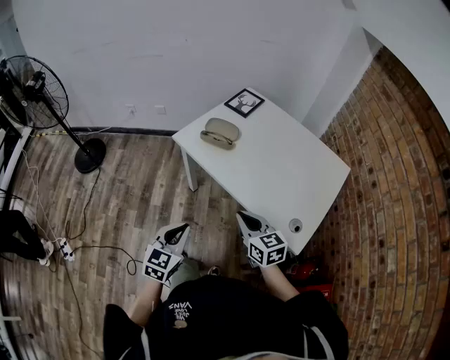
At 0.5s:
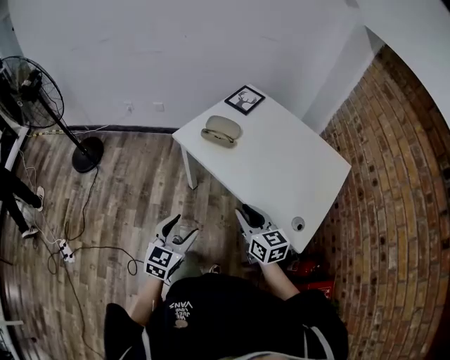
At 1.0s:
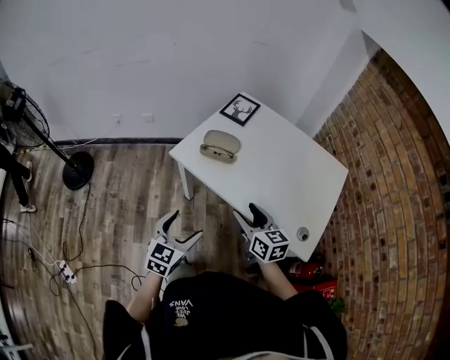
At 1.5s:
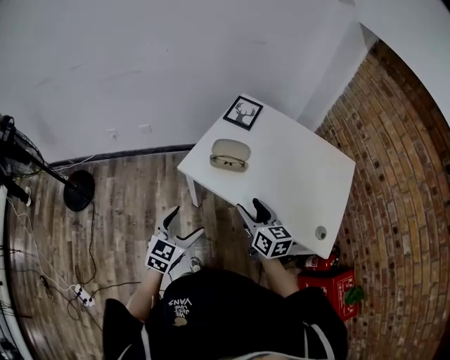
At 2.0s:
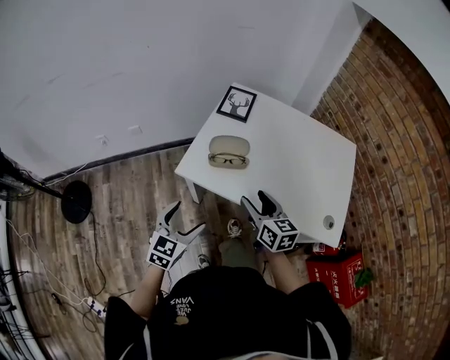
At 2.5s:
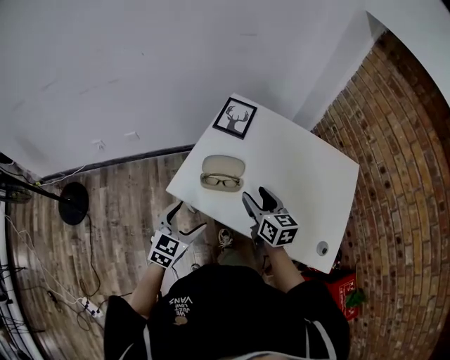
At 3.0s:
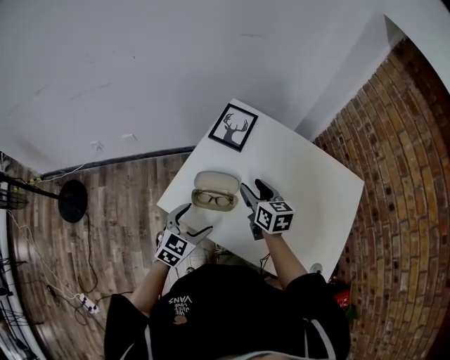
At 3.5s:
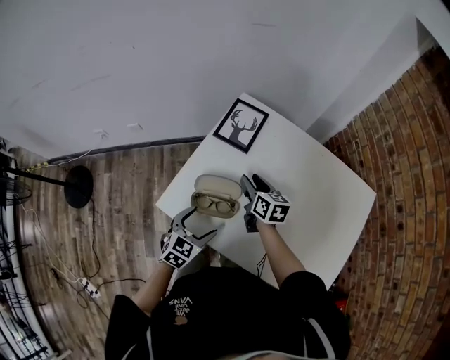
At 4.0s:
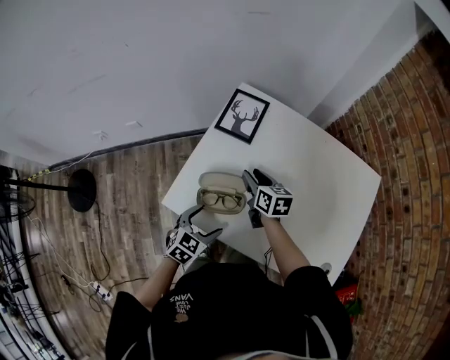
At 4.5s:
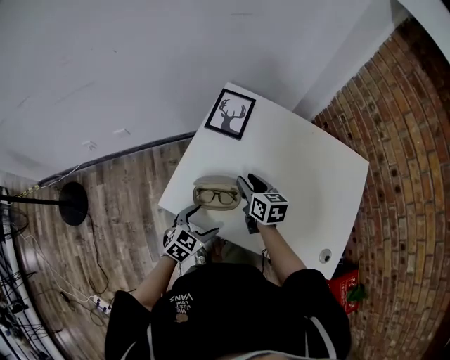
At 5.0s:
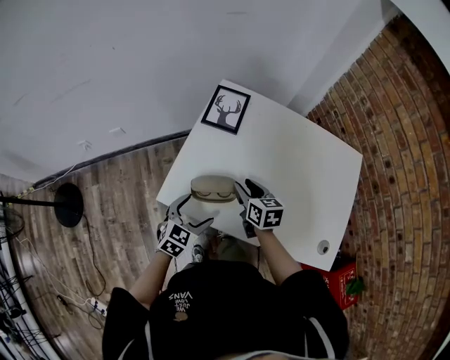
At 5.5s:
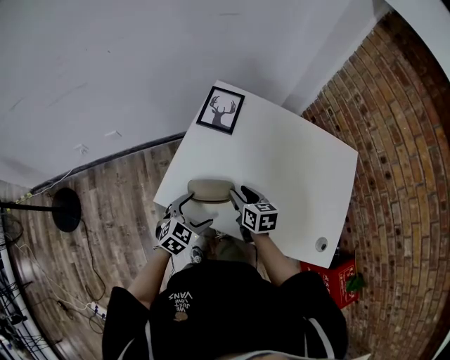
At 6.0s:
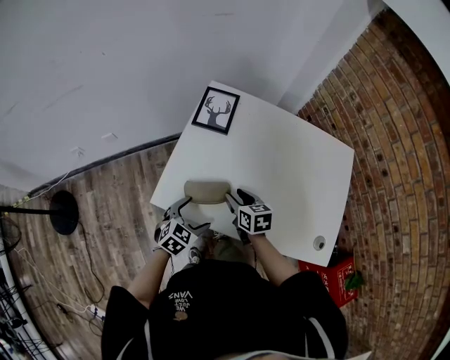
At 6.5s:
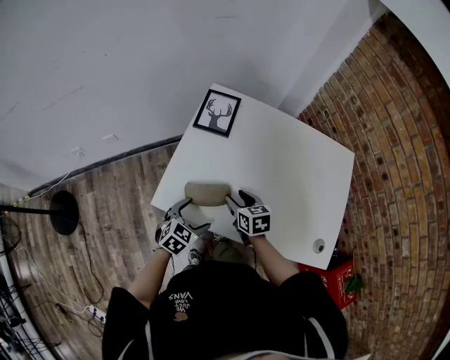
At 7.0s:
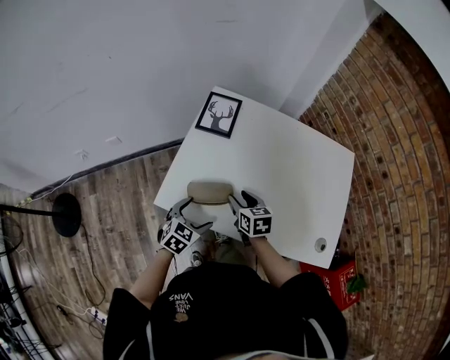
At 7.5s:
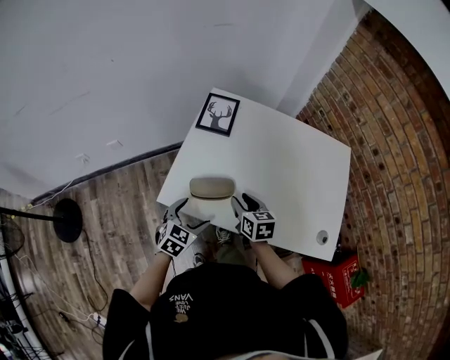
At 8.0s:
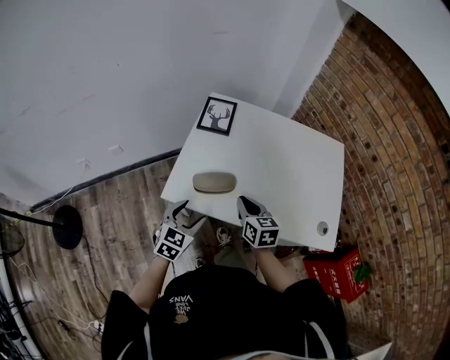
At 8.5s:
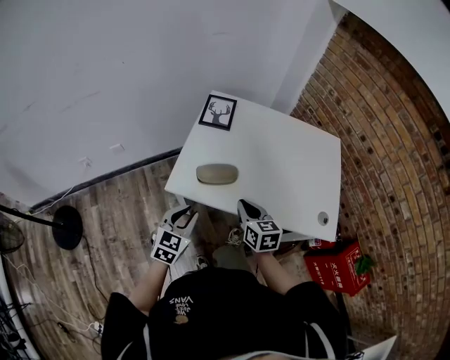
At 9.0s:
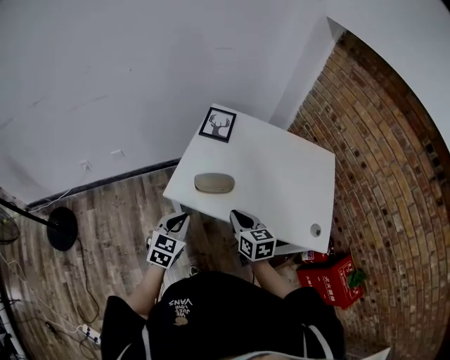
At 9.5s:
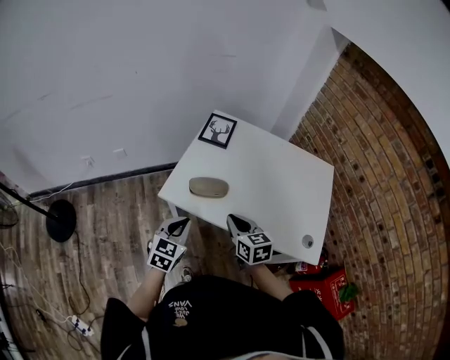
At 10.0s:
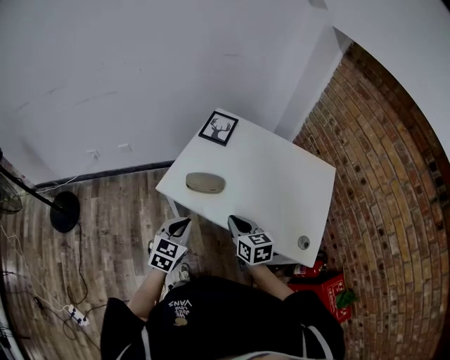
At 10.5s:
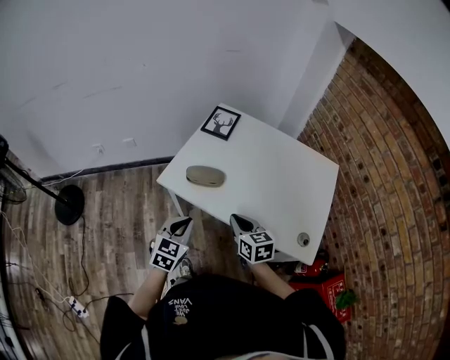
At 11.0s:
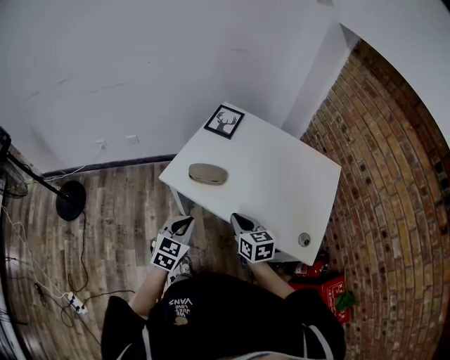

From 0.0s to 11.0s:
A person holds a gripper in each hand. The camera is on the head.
From 0.0s to 2.0s: Both grippers move forward and to the left, some 25 cm. The left gripper swivels approximately 20 degrees, and opens its fingers, while the right gripper swivels roughly 30 degrees, and opens its fingers.
From 2.0s to 3.5s: The right gripper moves forward, some 30 cm; the left gripper moves forward, to the right and downward, some 20 cm.
From 3.5s to 5.5s: The right gripper heads backward, covering roughly 15 cm.
From 5.5s to 7.5s: The grippers make only small movements.
From 7.5s to 9.0s: The two grippers go some 15 cm backward and upward. The right gripper closes its fingers. The left gripper closes its fingers.
From 9.0s to 11.0s: The left gripper travels to the right and backward by some 10 cm. Meanwhile the right gripper shifts about 5 cm to the right.

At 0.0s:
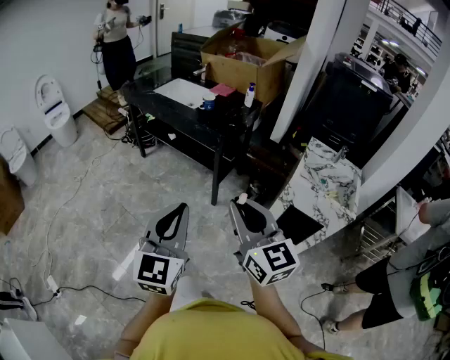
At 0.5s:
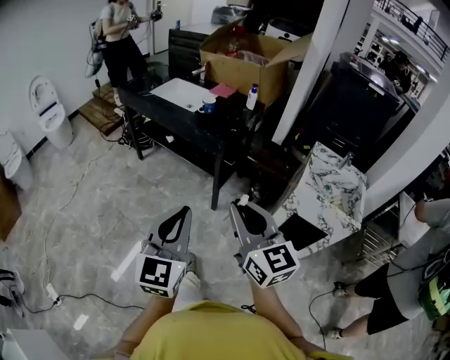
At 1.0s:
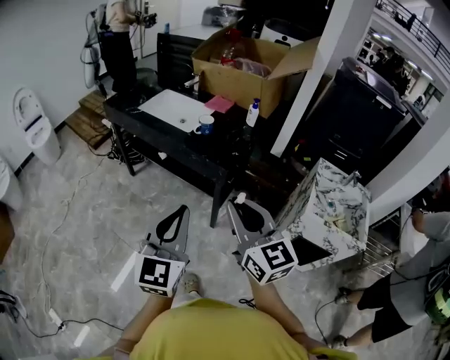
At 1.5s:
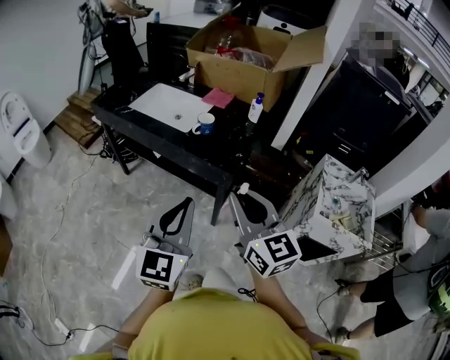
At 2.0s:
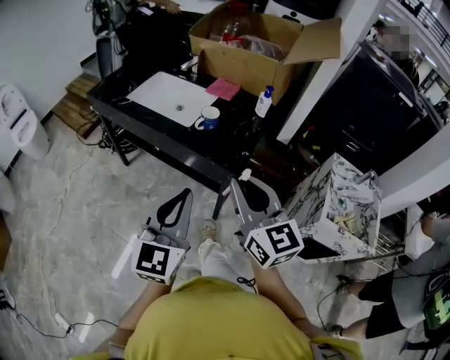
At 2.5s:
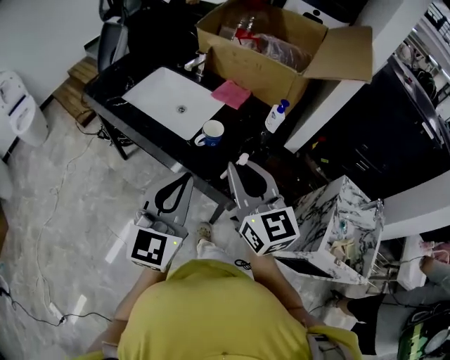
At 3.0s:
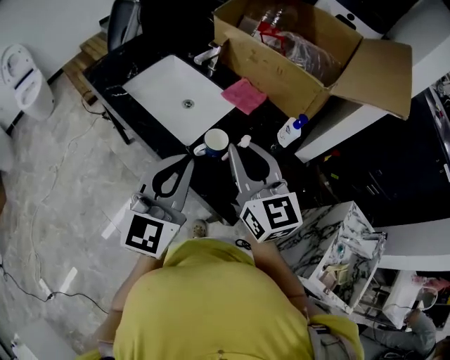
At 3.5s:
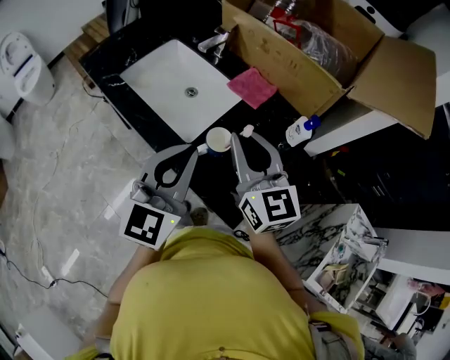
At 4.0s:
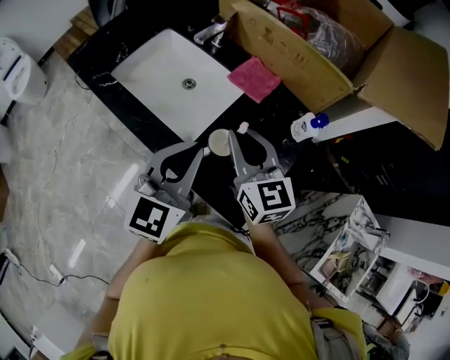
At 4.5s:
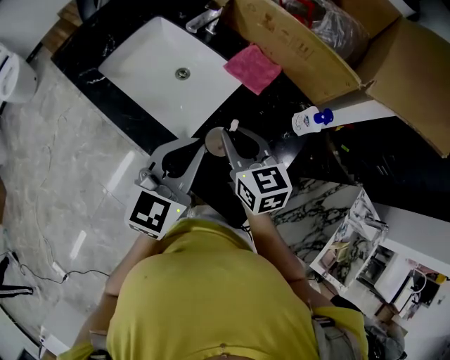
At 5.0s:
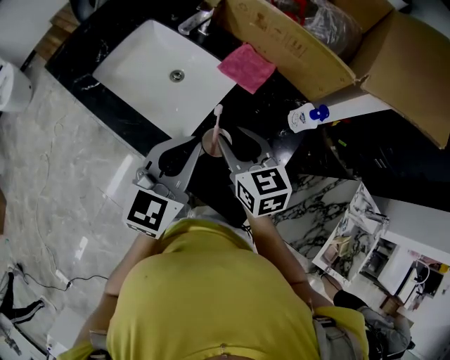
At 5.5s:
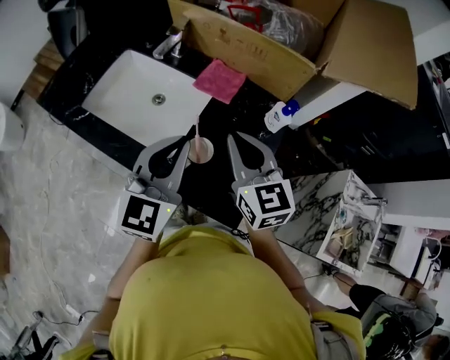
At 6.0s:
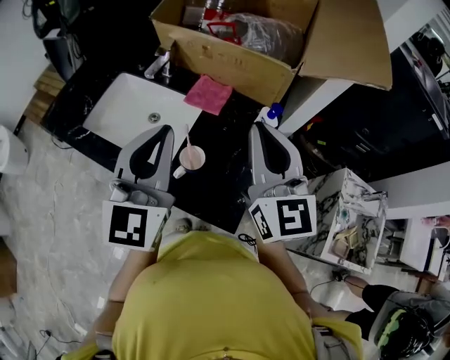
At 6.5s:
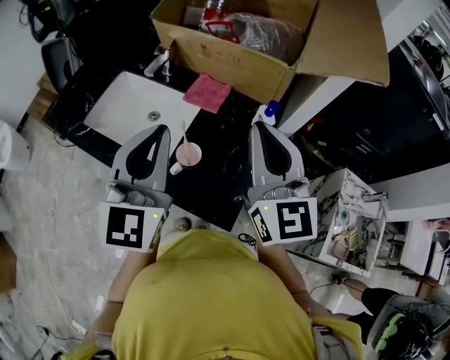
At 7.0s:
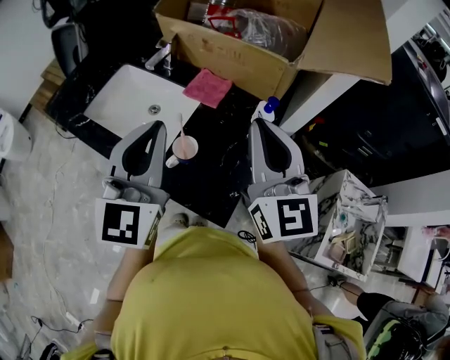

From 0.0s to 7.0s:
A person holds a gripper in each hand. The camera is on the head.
From 0.0s to 2.0s: Both grippers are carried forward, approximately 40 cm.
From 2.0s to 3.5s: The two grippers go approximately 35 cm forward.
From 3.5s to 5.0s: The right gripper shifts approximately 15 cm downward and forward, rotates about 30 degrees, and opens. Meanwhile the left gripper heads forward and downward, covering approximately 10 cm.
From 5.0s to 7.0s: The right gripper shifts roughly 25 cm upward and to the right, tips its fingers upward by approximately 30 degrees, and closes its fingers. Meanwhile the left gripper is displaced upward by roughly 15 cm.

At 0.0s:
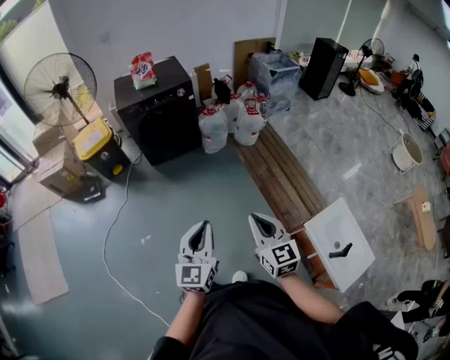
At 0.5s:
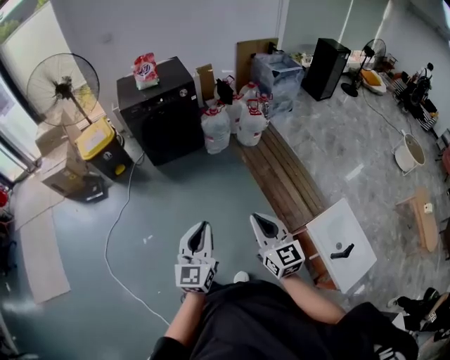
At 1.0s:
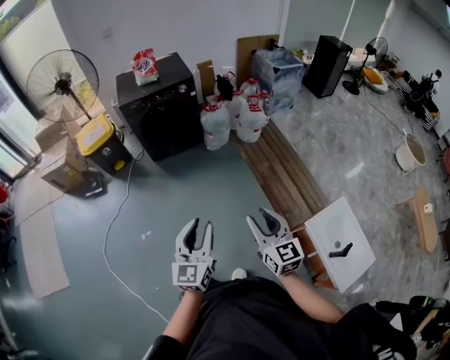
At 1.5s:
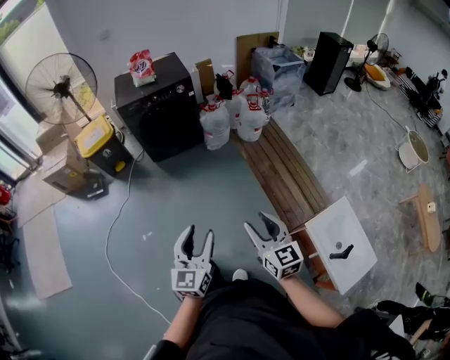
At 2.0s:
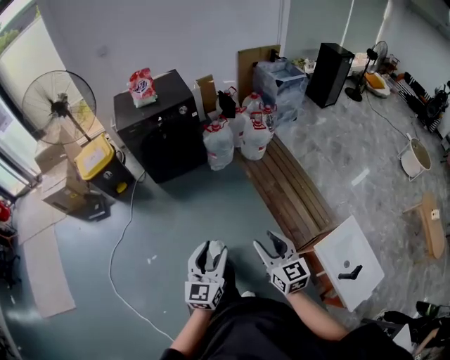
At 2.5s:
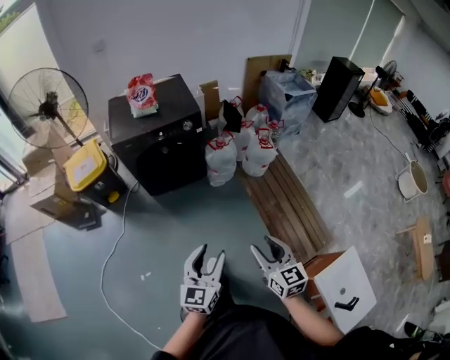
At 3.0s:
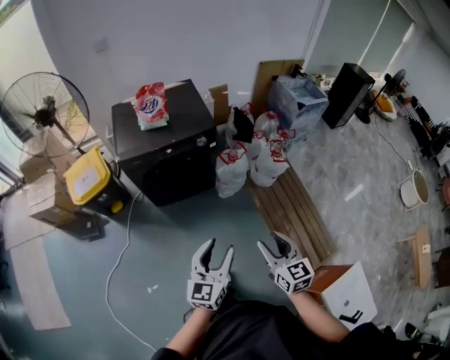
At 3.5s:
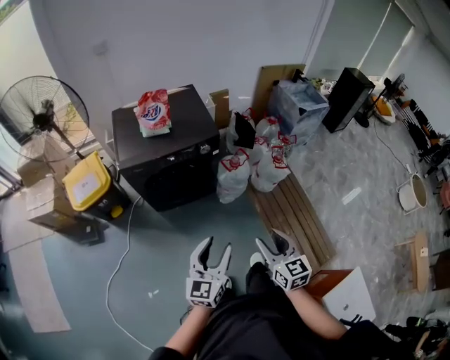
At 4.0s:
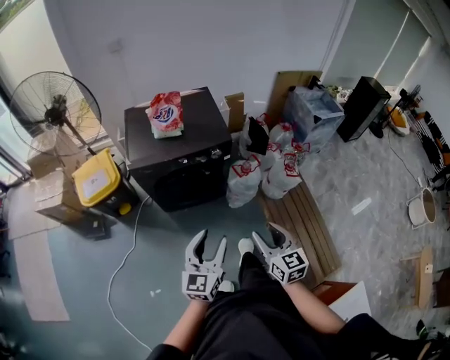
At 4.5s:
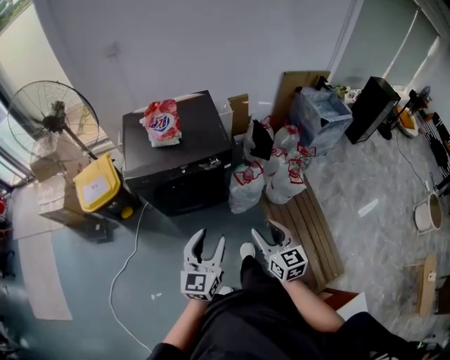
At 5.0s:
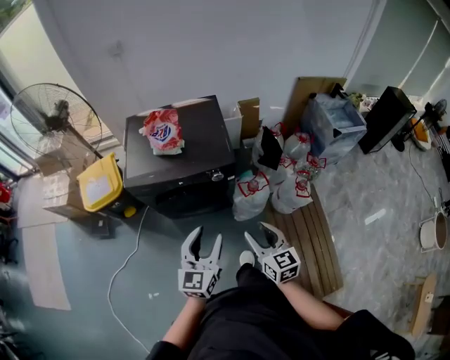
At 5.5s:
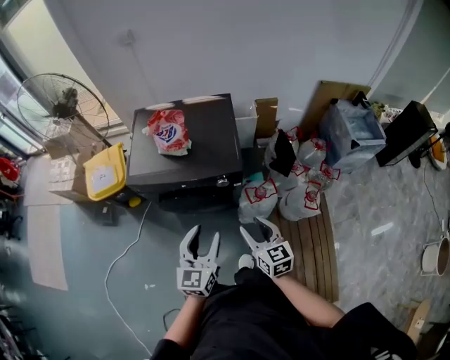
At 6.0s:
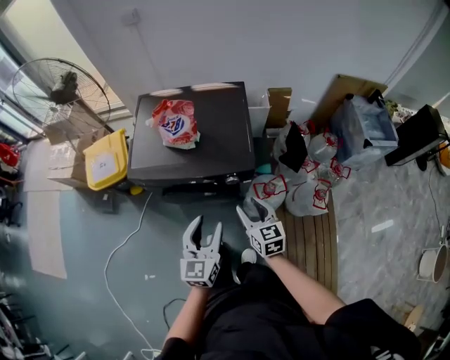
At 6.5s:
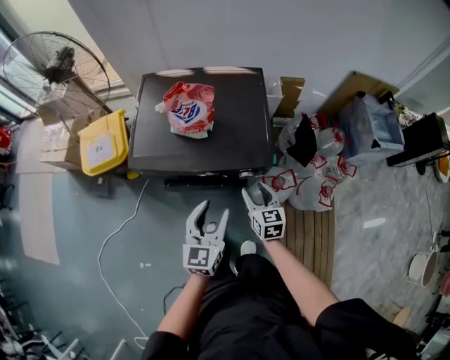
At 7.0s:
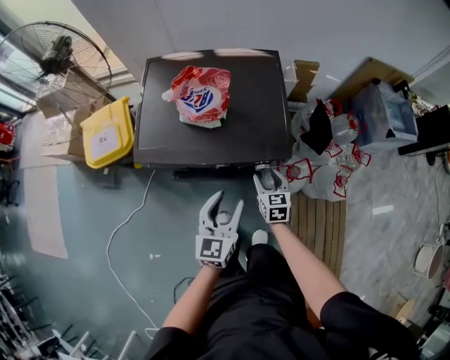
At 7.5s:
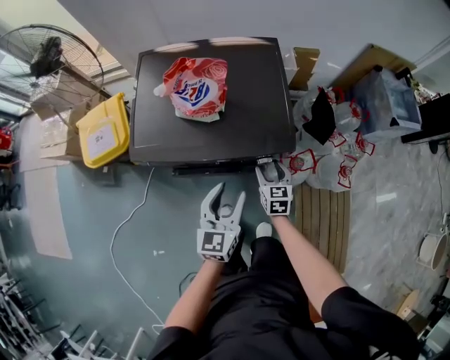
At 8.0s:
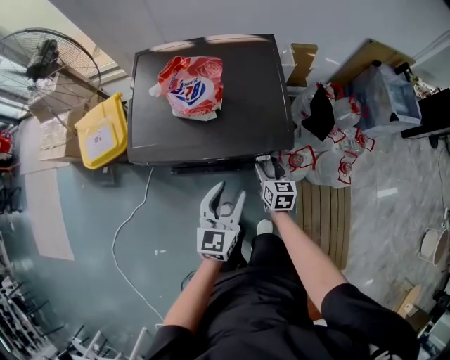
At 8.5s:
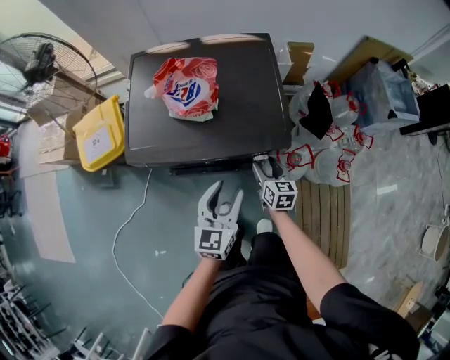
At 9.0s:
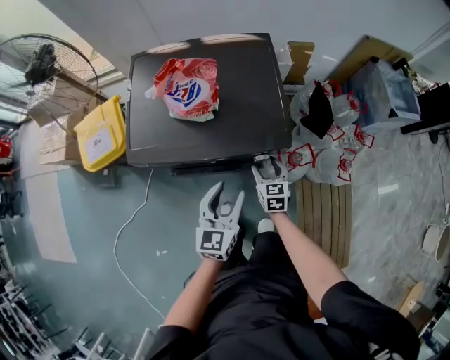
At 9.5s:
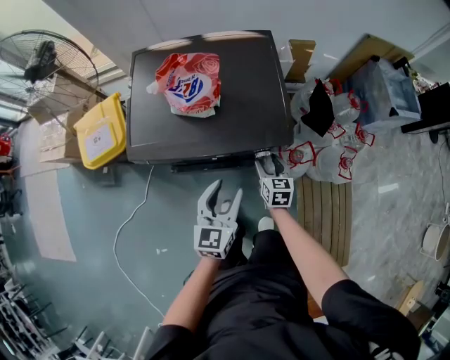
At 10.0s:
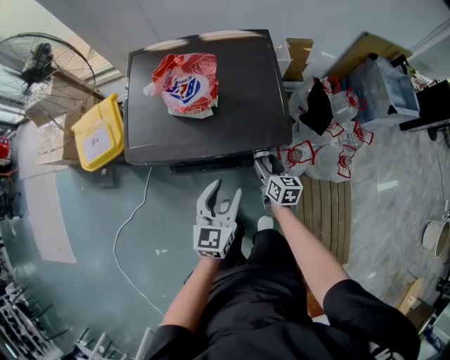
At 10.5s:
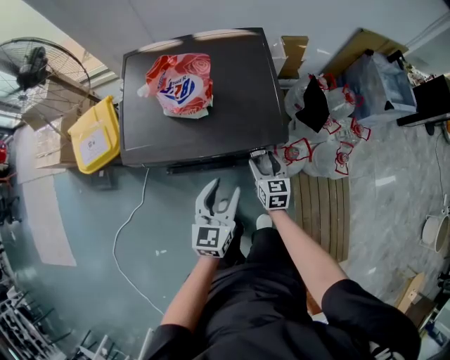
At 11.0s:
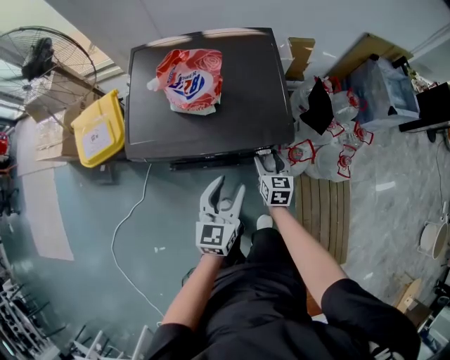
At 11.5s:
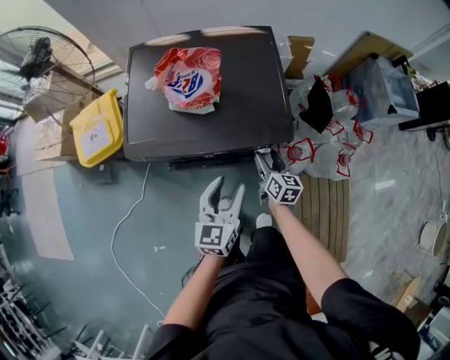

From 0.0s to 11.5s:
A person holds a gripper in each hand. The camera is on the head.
From 0.0s to 2.0s: The grippers both shift forward by approximately 10 cm. The left gripper opens. Meanwhile the right gripper opens its fingers.
From 2.0s to 4.0s: The pair of grippers is taken forward, roughly 50 cm.
From 4.0s to 6.0s: Both grippers move forward, some 30 cm. The left gripper turns by roughly 20 degrees.
From 6.0s to 7.5s: The right gripper goes approximately 20 cm downward and forward. The left gripper heads downward and forward, covering approximately 15 cm.
From 7.5s to 9.5s: There are only small adjustments of the grippers.
From 9.5s to 11.5s: There are only small adjustments of the grippers.
